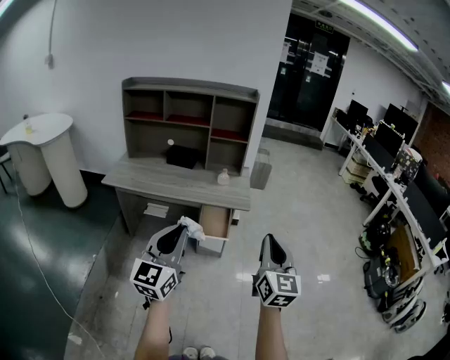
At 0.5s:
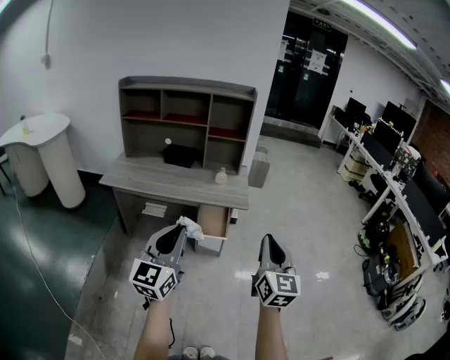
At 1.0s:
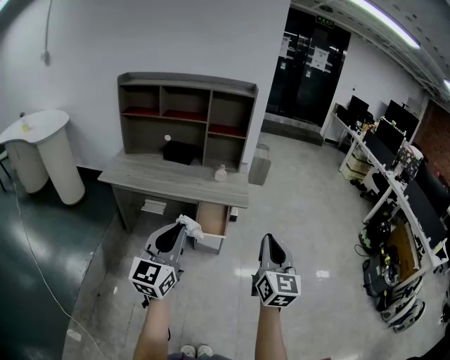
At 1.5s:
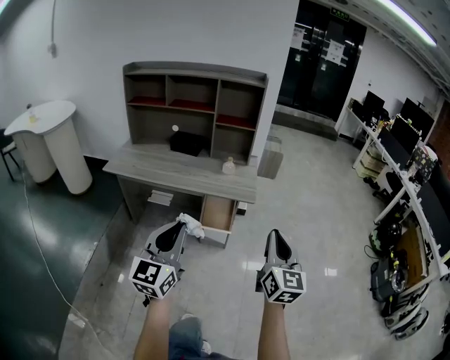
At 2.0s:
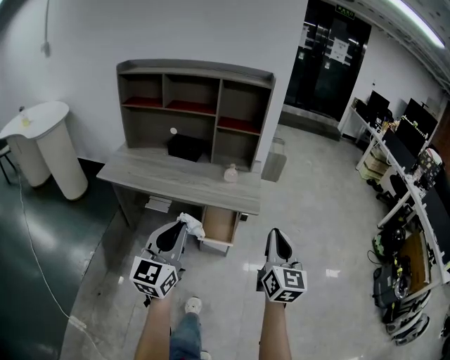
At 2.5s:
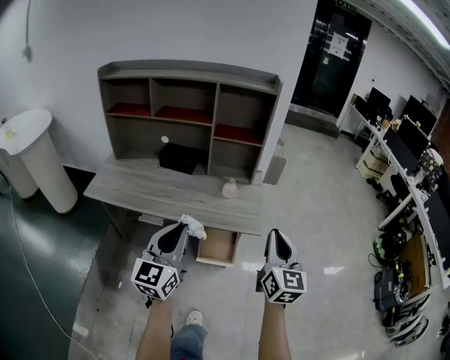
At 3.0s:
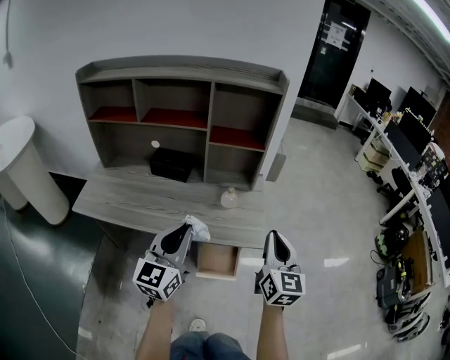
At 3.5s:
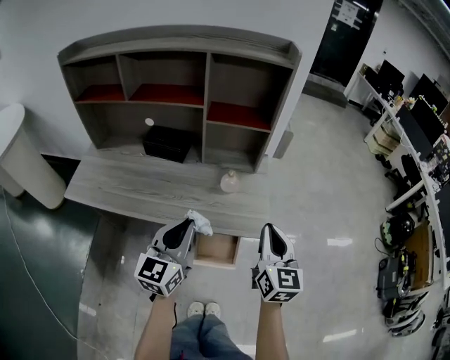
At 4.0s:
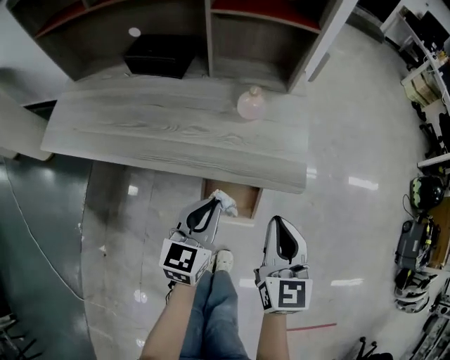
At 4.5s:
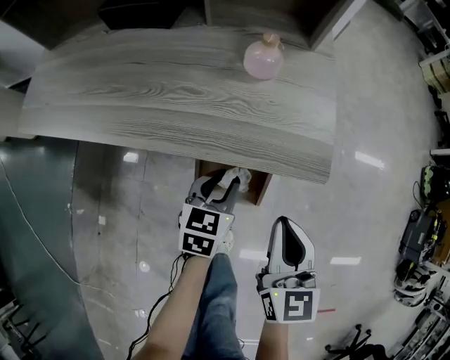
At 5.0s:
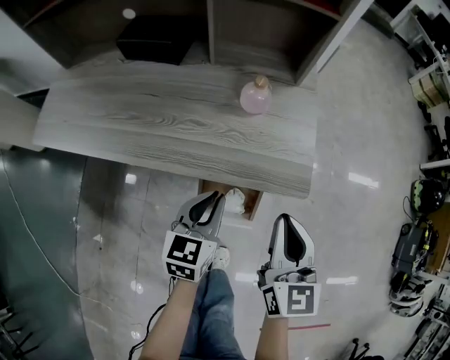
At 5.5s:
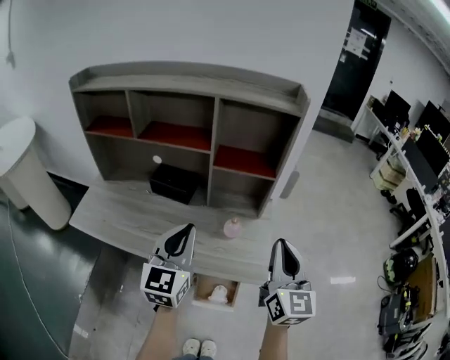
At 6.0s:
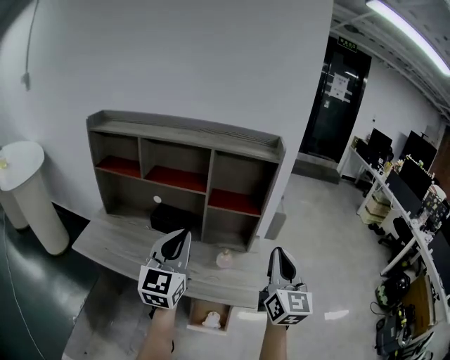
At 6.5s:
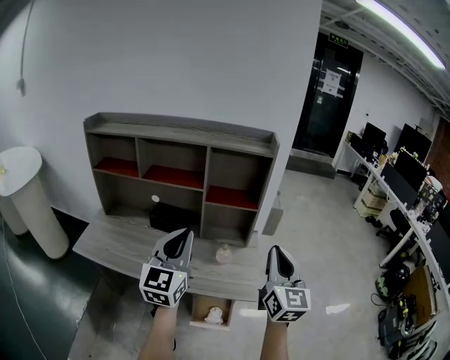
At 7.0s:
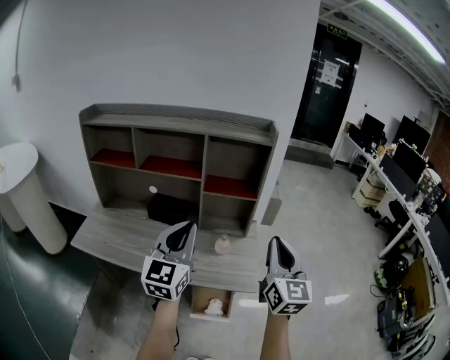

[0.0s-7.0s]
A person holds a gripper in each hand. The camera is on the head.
0.0s to 2.0s: The left gripper goes about 15 cm forward and downward; the right gripper goes about 15 cm forward.
2.0s to 3.5s: Both grippers travel together forward, some 25 cm.
3.5s to 5.0s: Both grippers move downward, approximately 20 cm. The left gripper rotates approximately 30 degrees.
5.0s to 7.0s: Both grippers travel together upward, some 40 cm. The left gripper points its fingers some 40 degrees further upward. The right gripper turns by about 30 degrees.

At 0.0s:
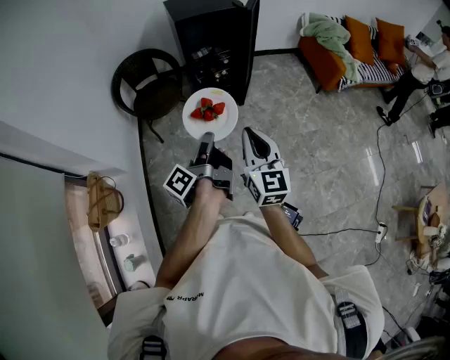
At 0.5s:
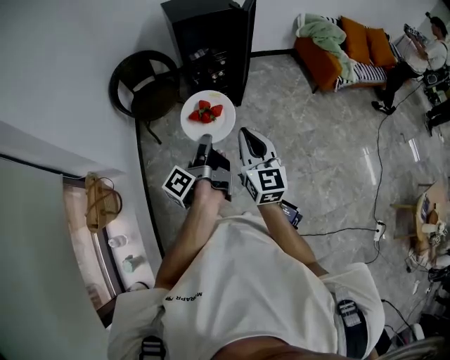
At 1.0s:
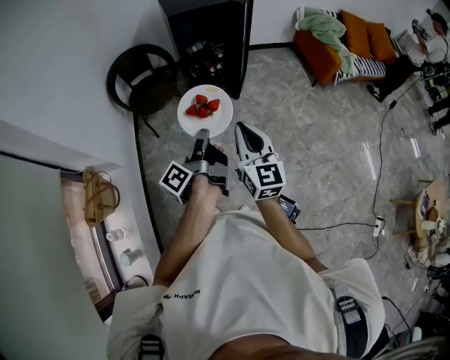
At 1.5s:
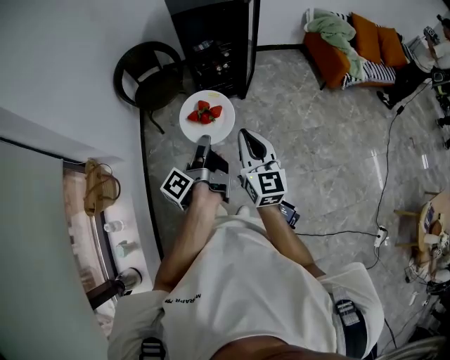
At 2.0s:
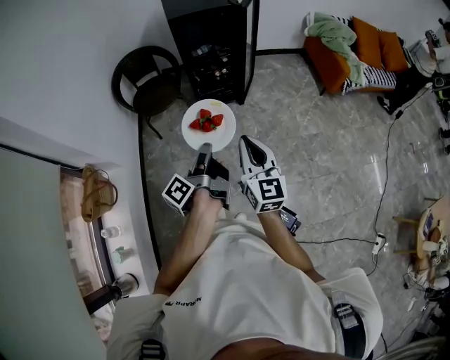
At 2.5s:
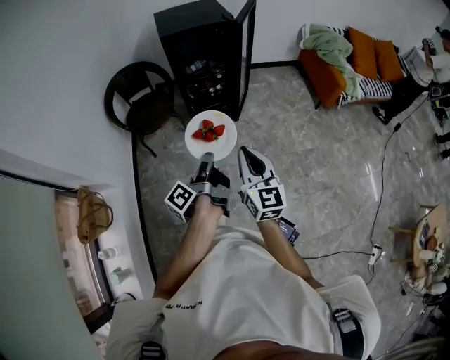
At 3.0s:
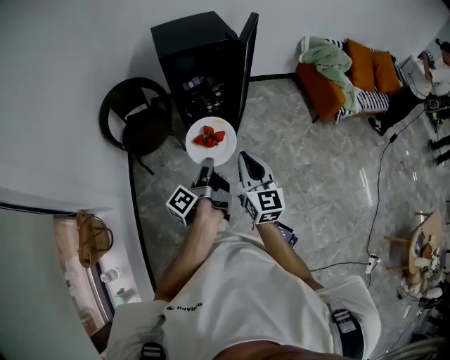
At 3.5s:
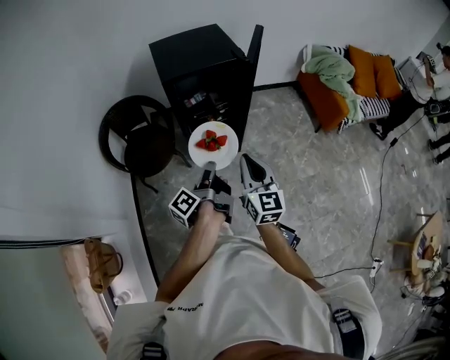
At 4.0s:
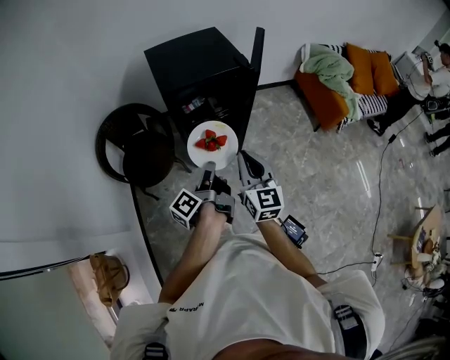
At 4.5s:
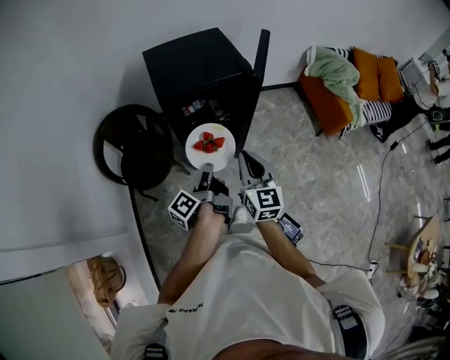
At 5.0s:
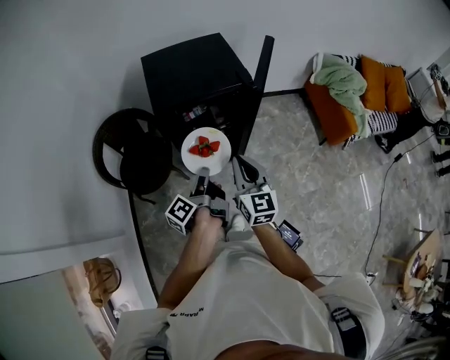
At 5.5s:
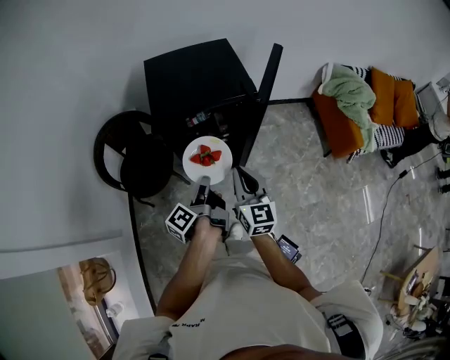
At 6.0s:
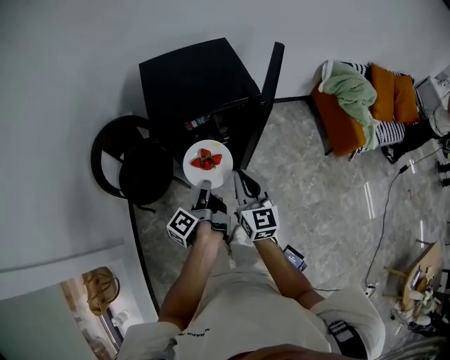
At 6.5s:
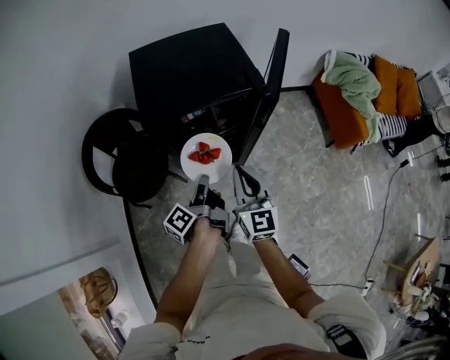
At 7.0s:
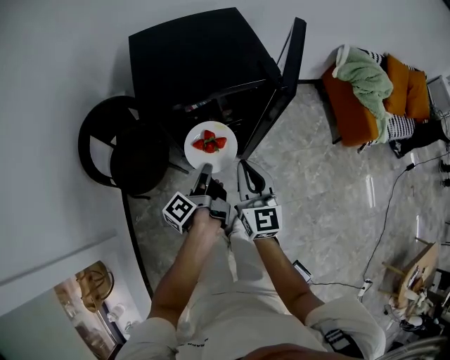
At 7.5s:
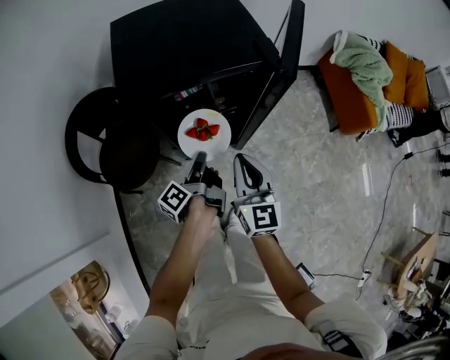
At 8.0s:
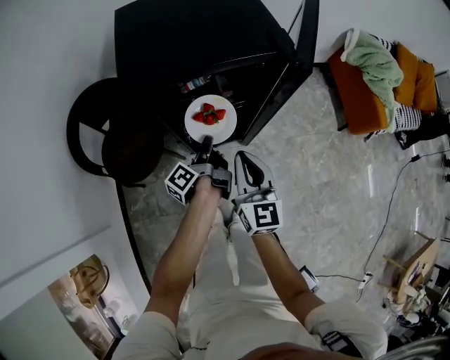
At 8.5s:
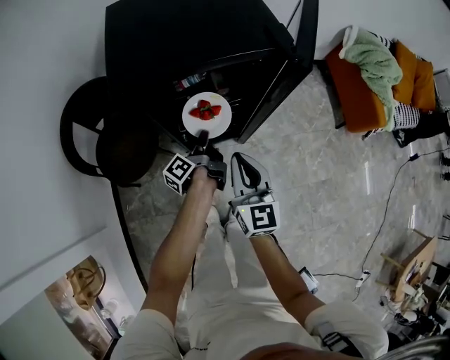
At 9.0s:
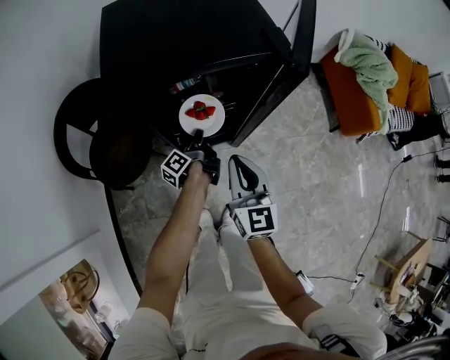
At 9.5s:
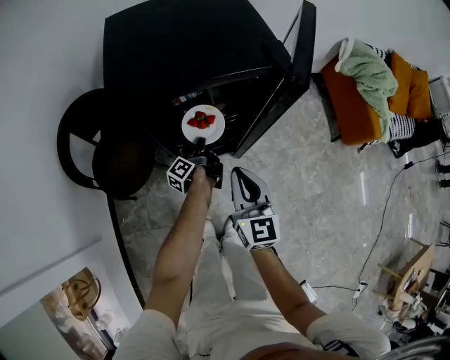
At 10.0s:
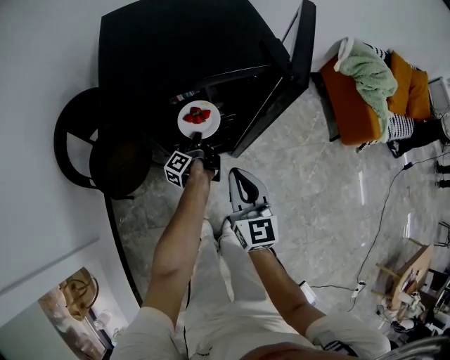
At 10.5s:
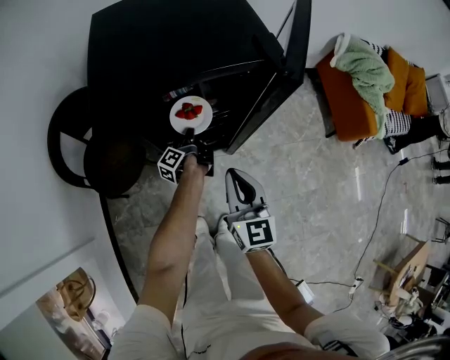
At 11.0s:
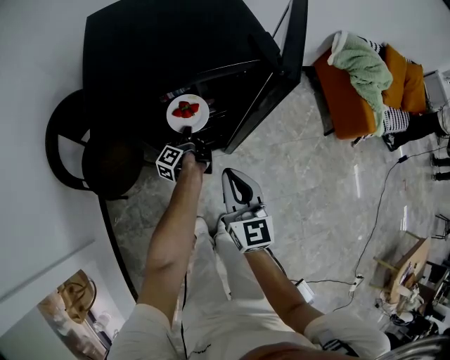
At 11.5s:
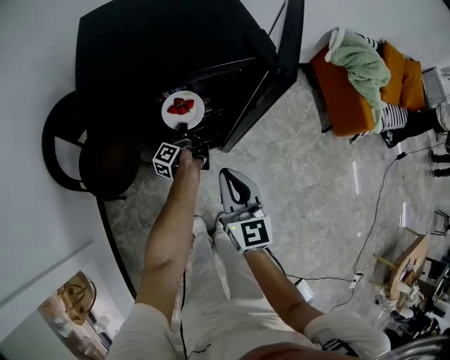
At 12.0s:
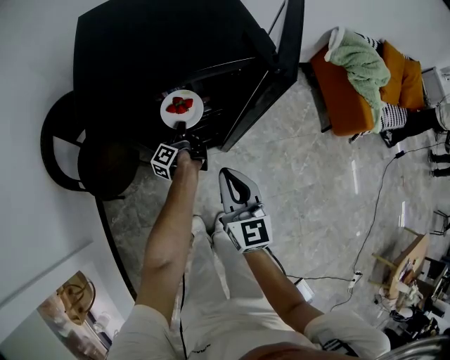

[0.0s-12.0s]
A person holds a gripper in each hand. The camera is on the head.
0.0s to 2.0s: The right gripper moves about 5 cm.
2.0s to 4.0s: The right gripper ends up some 40 cm from where it was.
4.0s to 6.0s: The right gripper ends up some 15 cm from where it was.
6.0s to 8.0s: The right gripper shifts about 15 cm downward.

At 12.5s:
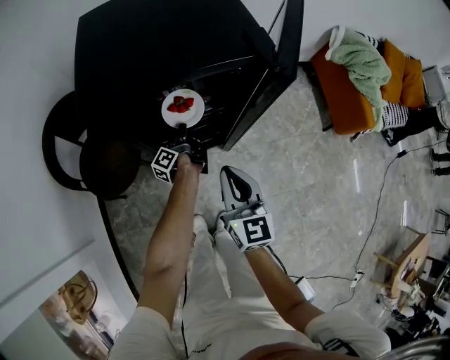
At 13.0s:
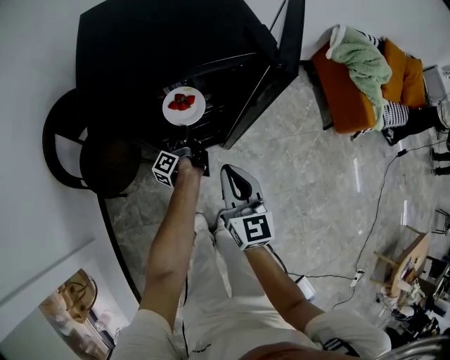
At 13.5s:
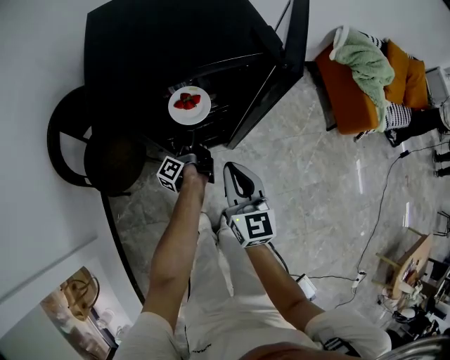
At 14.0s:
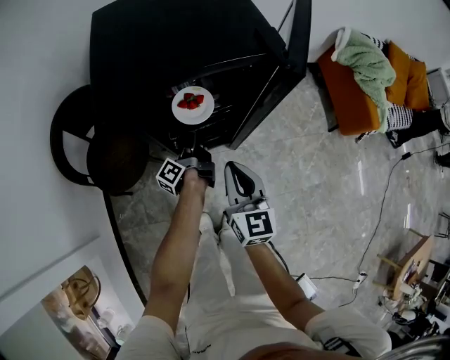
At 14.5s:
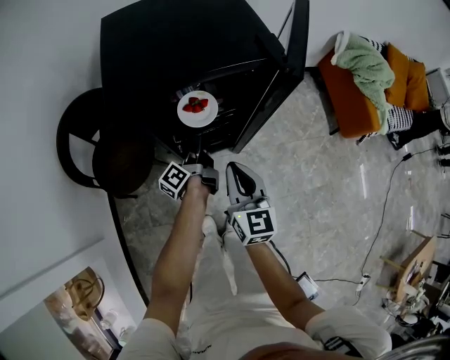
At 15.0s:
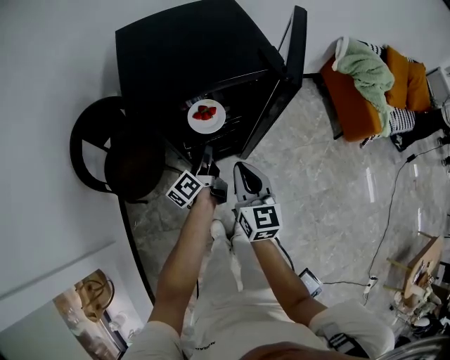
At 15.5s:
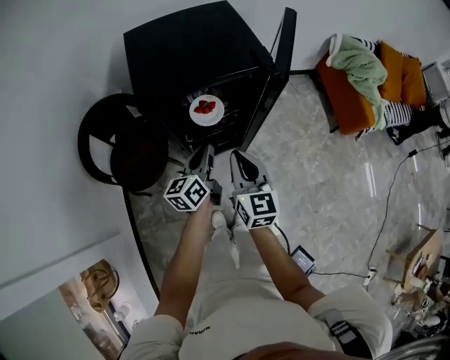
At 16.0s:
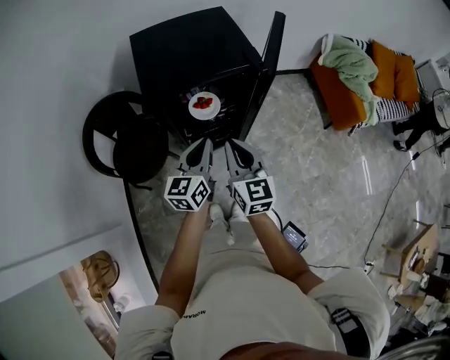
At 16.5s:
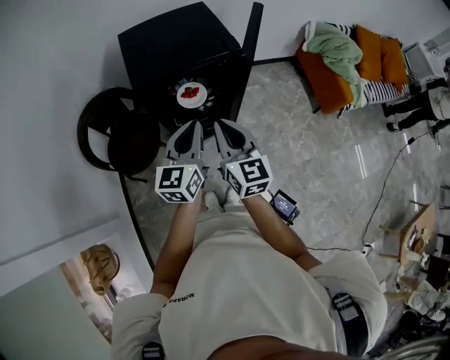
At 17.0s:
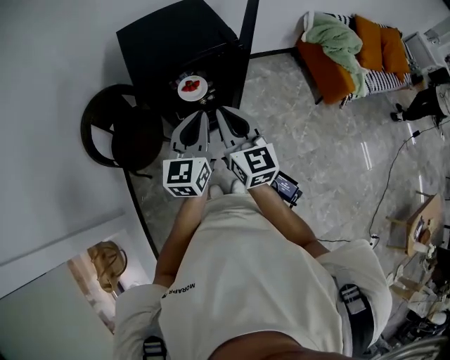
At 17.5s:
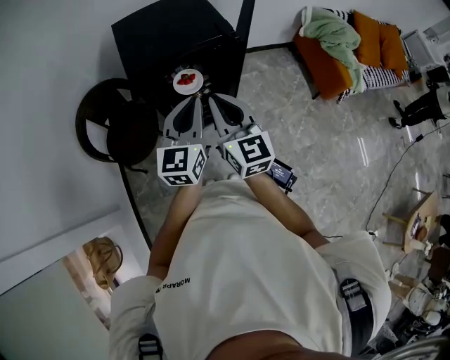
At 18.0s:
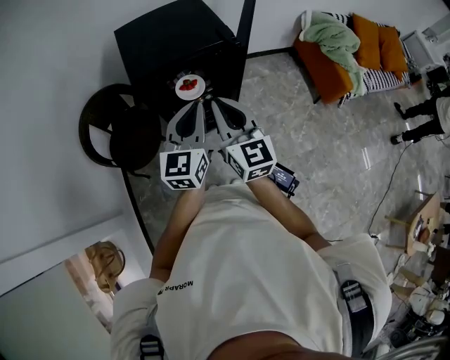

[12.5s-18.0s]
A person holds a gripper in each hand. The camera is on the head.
14.5s to 16.0s: The right gripper shifts approximately 15 cm upward.
16.0s to 18.0s: The right gripper heads upward, covering some 10 cm.

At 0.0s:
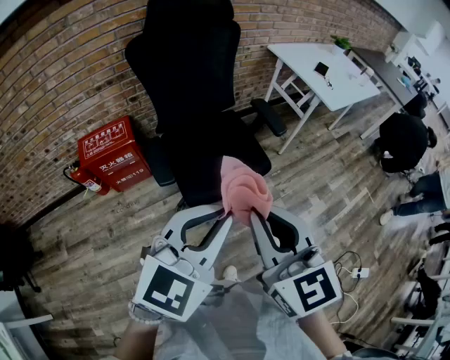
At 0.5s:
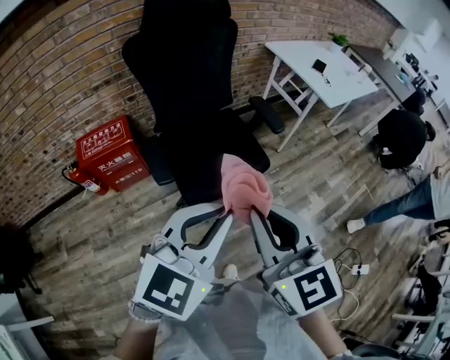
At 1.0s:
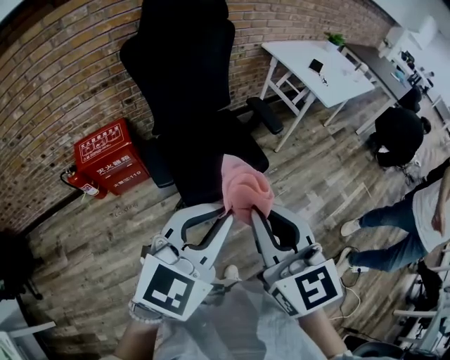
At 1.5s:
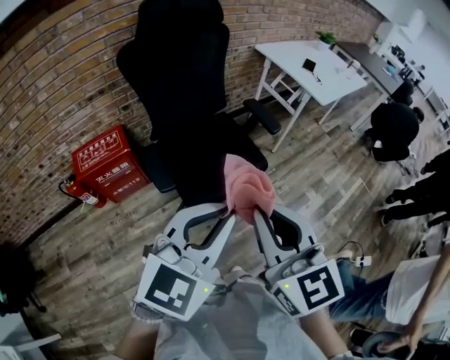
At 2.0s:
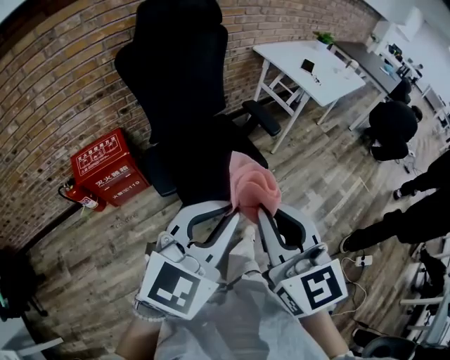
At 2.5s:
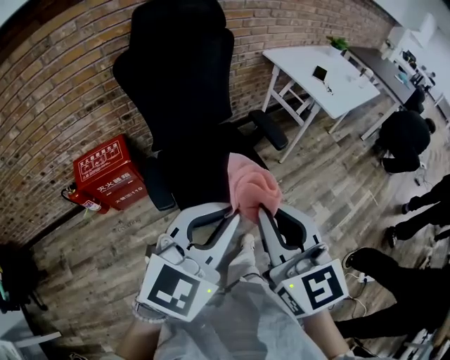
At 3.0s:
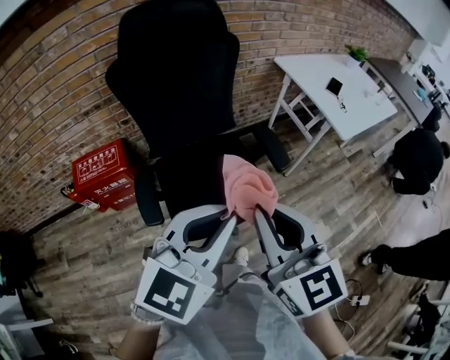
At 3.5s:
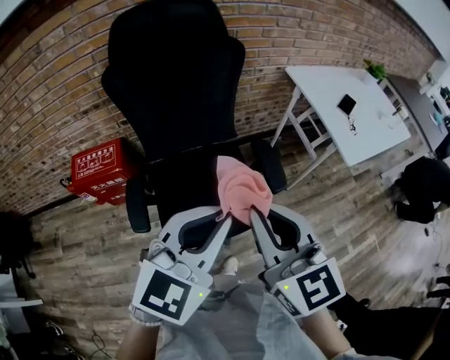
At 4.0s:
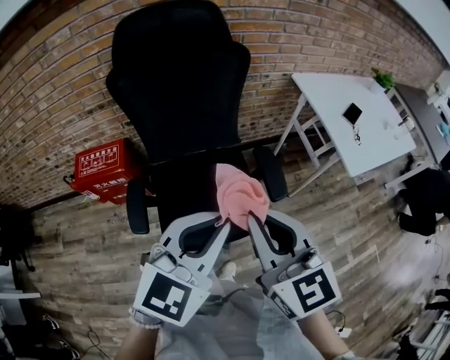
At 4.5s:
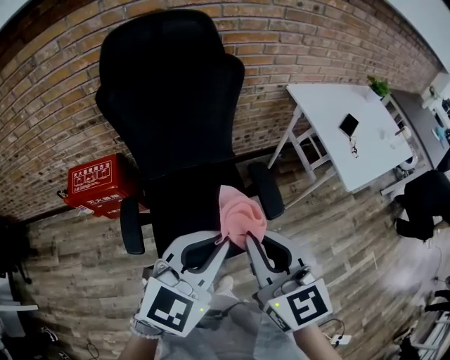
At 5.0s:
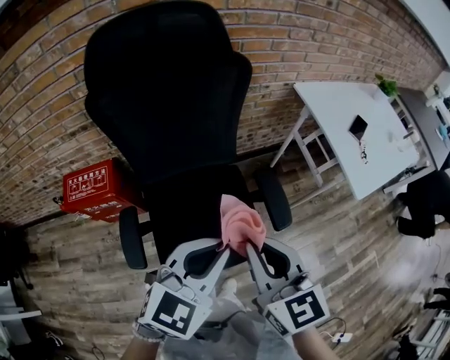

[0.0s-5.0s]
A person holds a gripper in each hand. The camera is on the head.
0.0s to 2.5s: The grippers both shift forward by about 10 cm.
2.5s to 5.0s: Both grippers move forward, some 30 cm.
